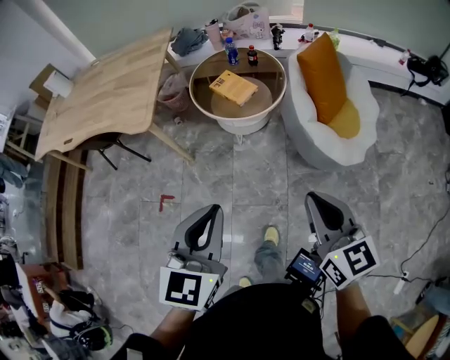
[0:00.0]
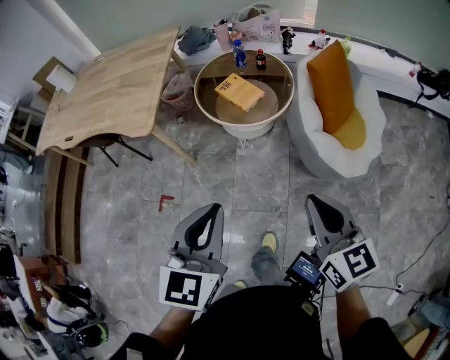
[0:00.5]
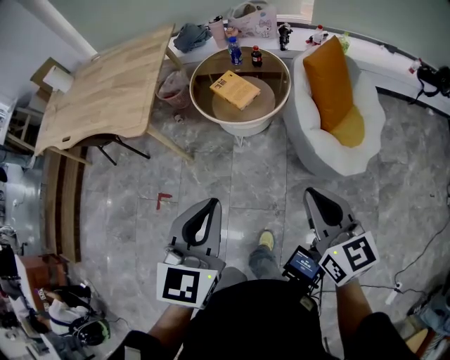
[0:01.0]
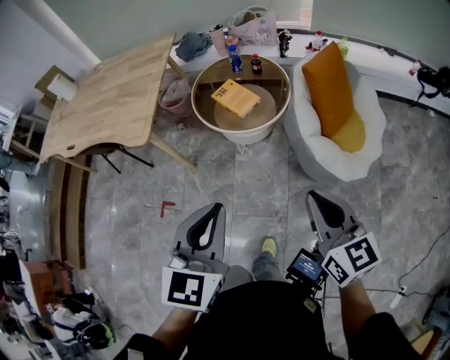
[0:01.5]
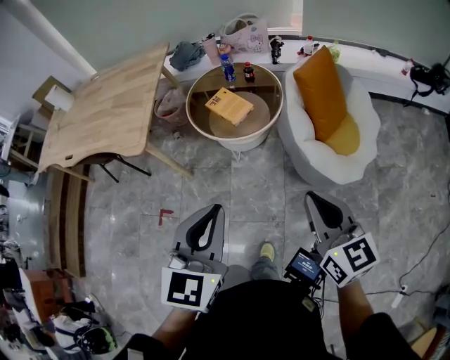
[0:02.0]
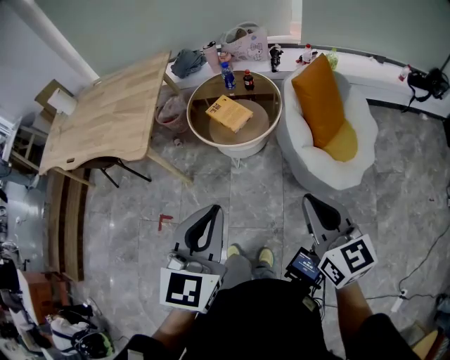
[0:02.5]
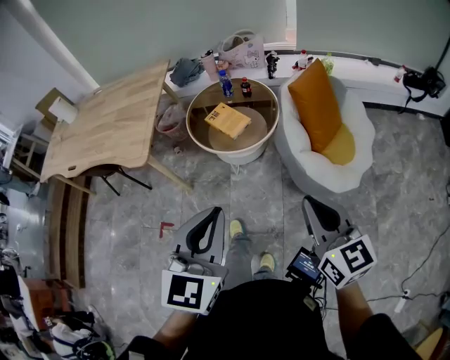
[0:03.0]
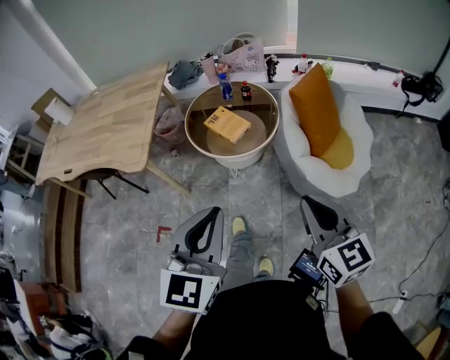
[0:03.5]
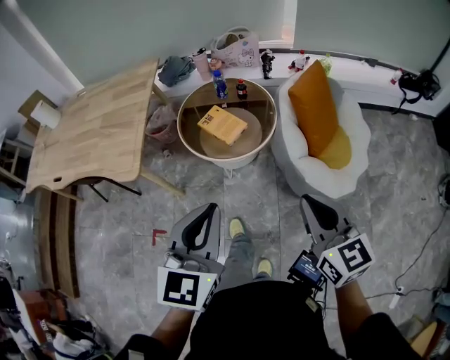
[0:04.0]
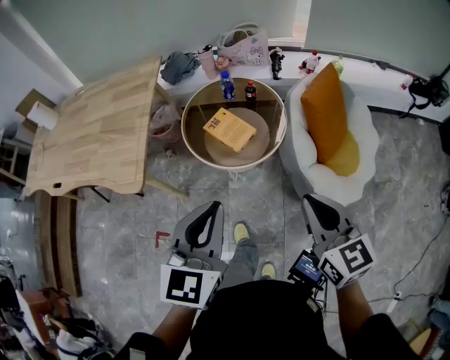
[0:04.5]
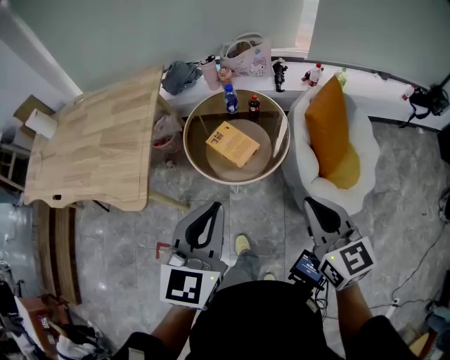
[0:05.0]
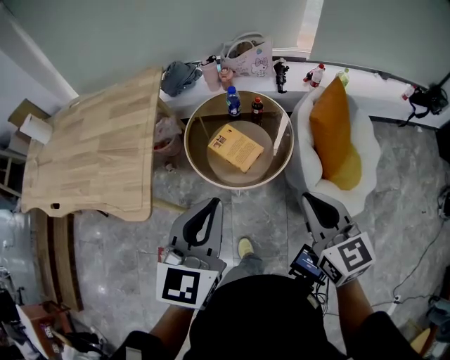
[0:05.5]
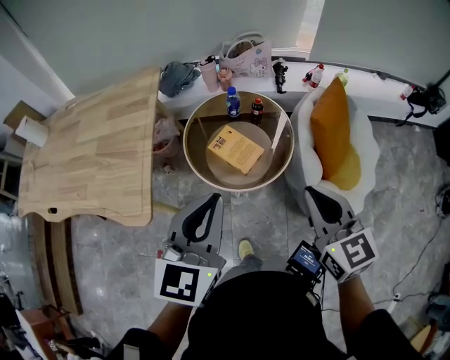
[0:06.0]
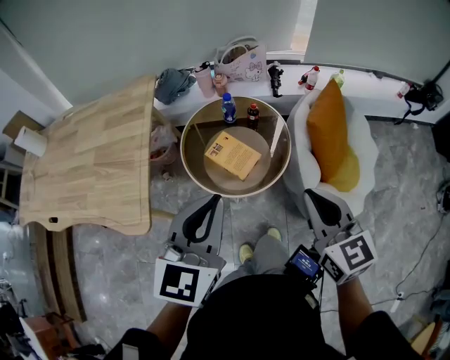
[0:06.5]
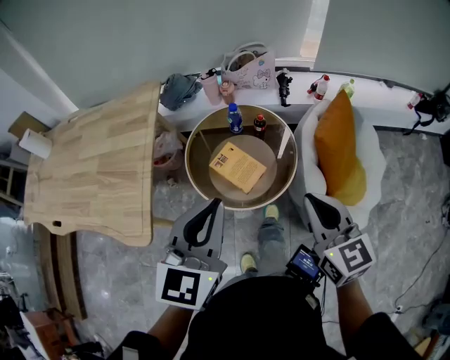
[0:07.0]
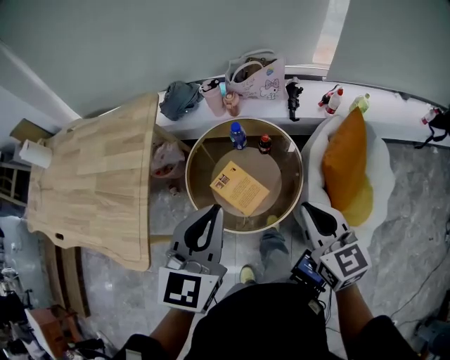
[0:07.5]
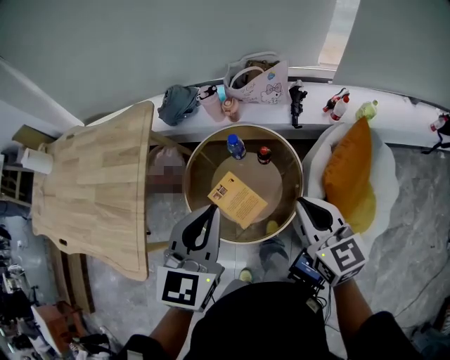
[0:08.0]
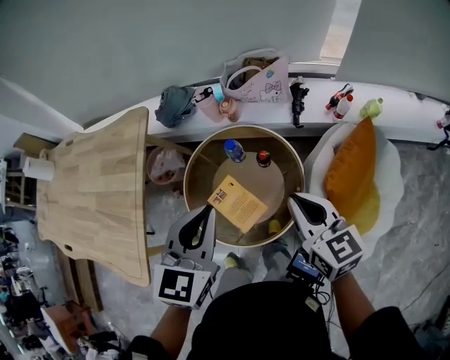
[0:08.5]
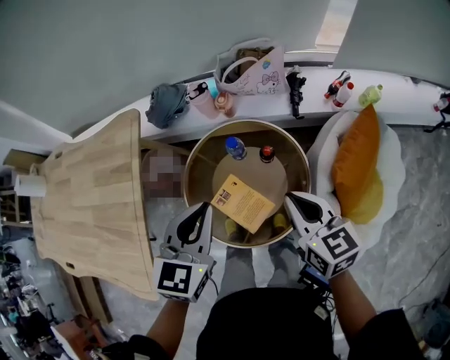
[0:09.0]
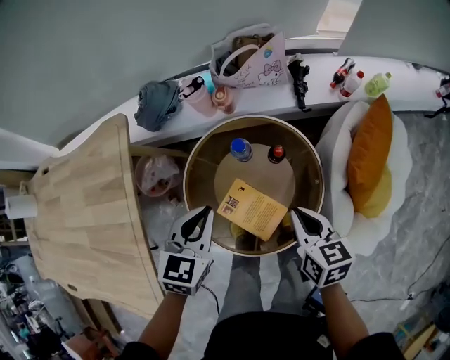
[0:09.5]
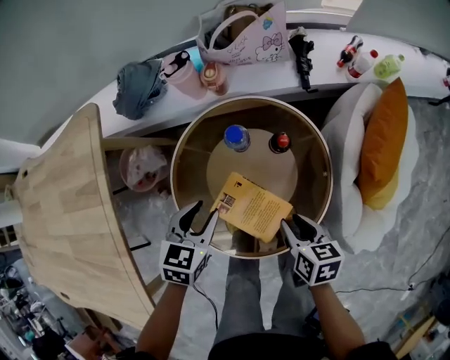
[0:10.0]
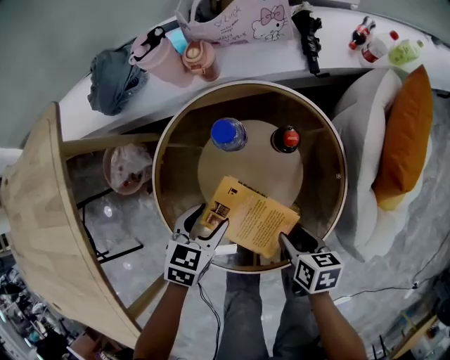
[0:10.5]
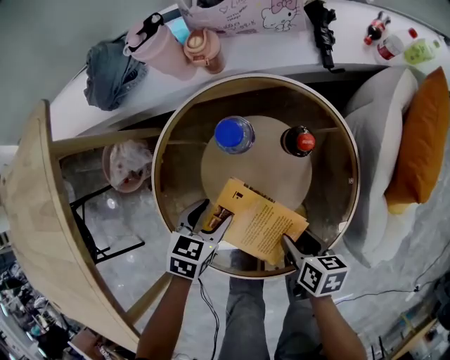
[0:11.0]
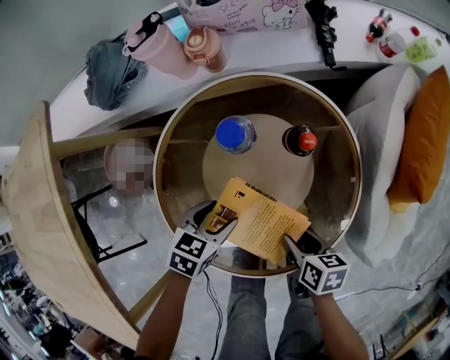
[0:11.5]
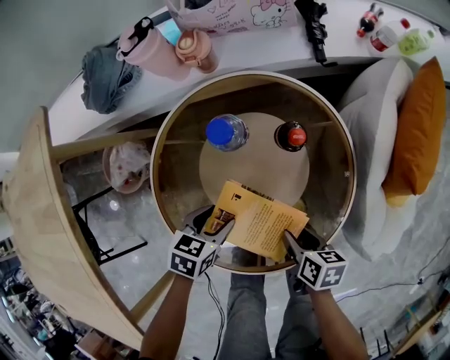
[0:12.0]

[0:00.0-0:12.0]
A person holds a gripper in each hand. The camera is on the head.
0:00.0 to 0:02.0: The two grippers go roughly 10 cm forward and to the right.
0:02.0 to 0:04.0: Both grippers move forward, some 10 cm.
0:04.0 to 0:06.0: Both grippers move forward, roughly 20 cm.
0:06.0 to 0:08.0: Both grippers move forward, approximately 30 cm.
0:08.0 to 0:10.0: Both grippers travel together downward, approximately 35 cm. The left gripper swivels roughly 30 degrees, and opens. The right gripper changes its angle by approximately 40 degrees, and opens its fingers.
0:10.0 to 0:12.0: Both grippers travel together downward, roughly 15 cm. The left gripper swivels about 20 degrees.

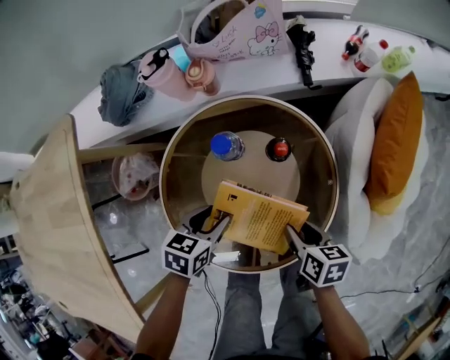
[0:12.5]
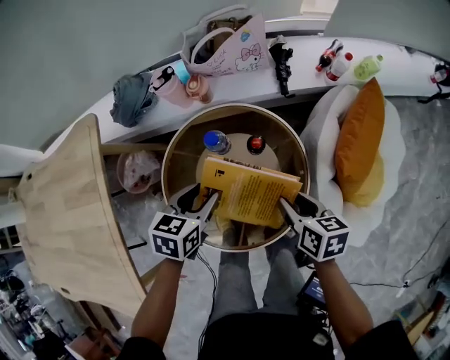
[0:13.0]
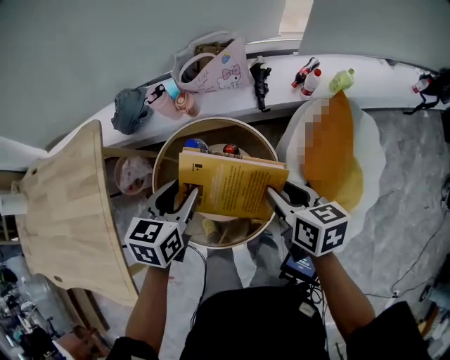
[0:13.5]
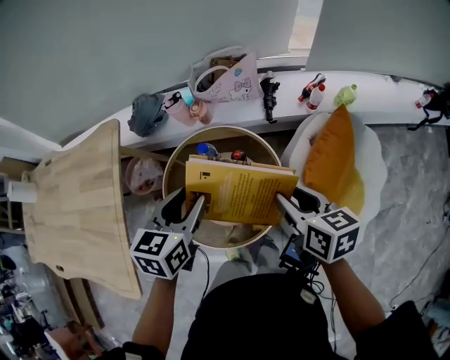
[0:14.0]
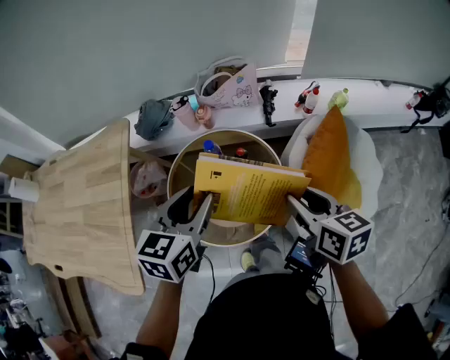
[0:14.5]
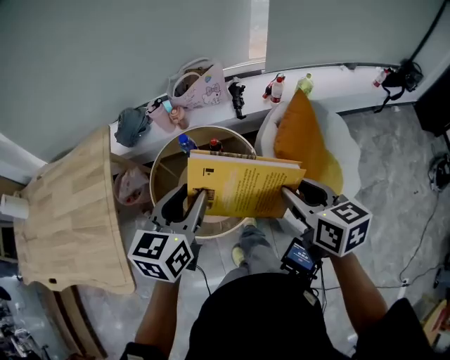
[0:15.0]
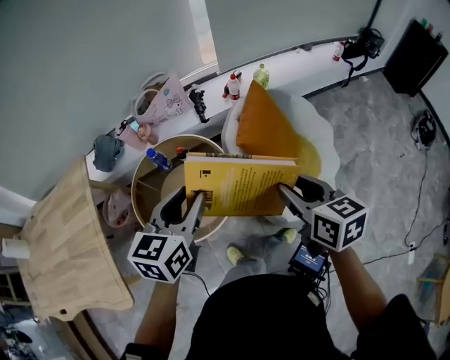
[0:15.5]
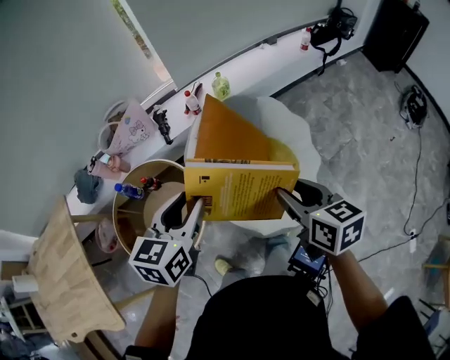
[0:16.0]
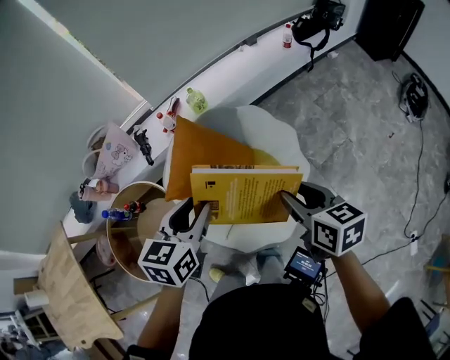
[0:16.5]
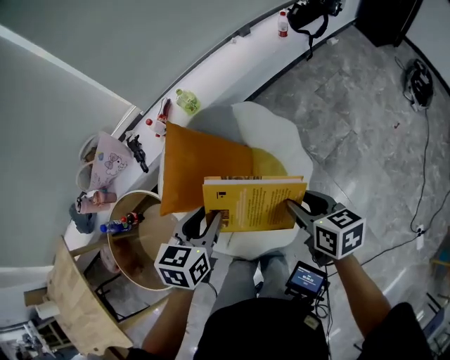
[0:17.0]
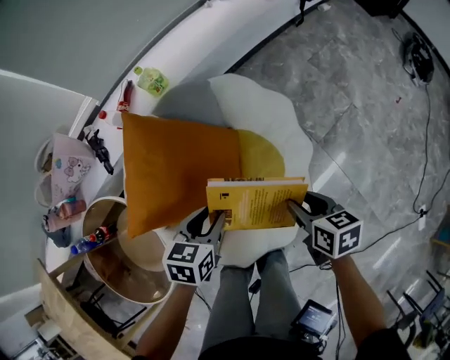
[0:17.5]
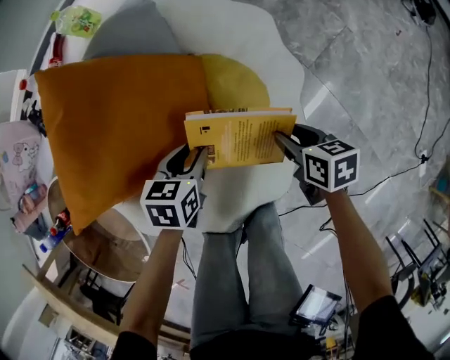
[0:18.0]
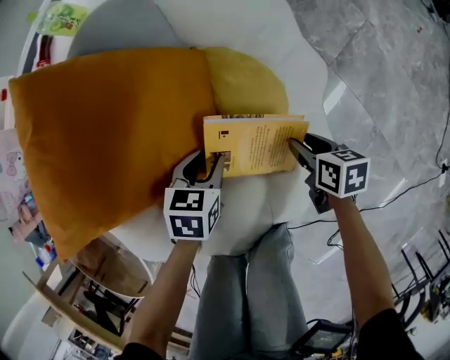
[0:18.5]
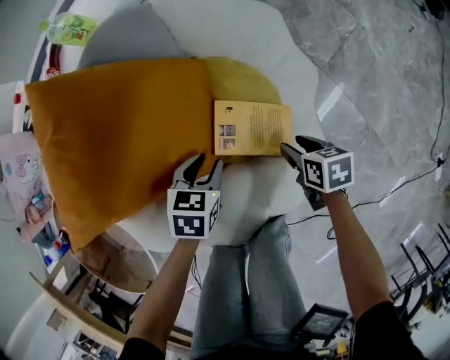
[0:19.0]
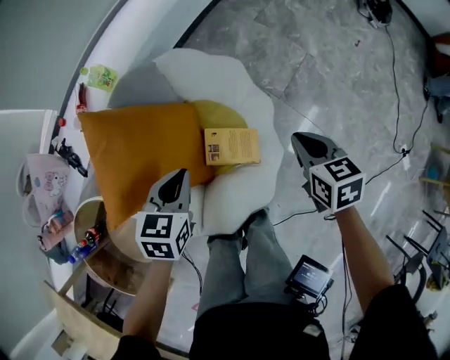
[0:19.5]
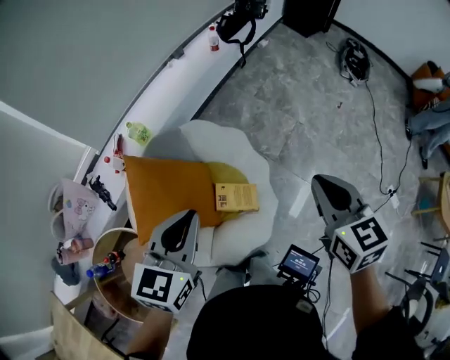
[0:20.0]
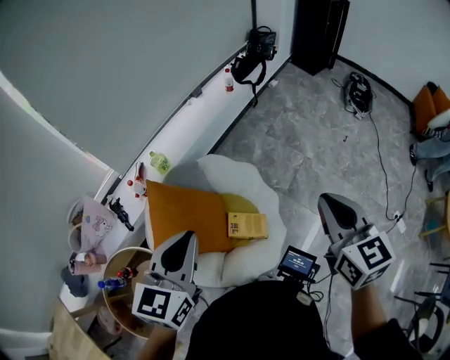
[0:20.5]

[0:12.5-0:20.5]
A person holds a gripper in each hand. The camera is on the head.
0:12.5 to 0:14.5: Both grippers travel together upward, some 40 cm. The left gripper turns by roughly 30 degrees, while the right gripper rotates approximately 30 degrees.
0:14.5 to 0:16.5: The two grippers travel together, some 50 cm. The left gripper rotates some 30 degrees; the right gripper rotates approximately 30 degrees.
0:16.5 to 0:18.5: The two grippers go about 60 cm downward. The left gripper rotates roughly 30 degrees. The right gripper rotates some 30 degrees.
0:18.5 to 0:20.5: The two grippers go approximately 70 cm upward. The right gripper tips its fingers upward by some 30 degrees, and closes its fingers; the left gripper tips its fingers upward by about 40 degrees, and closes.

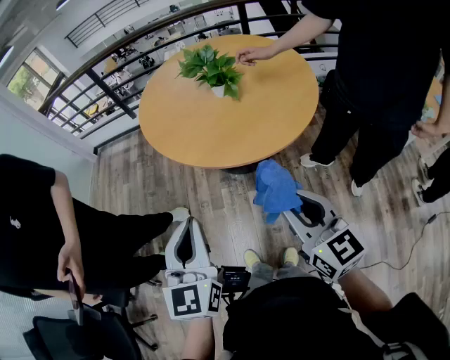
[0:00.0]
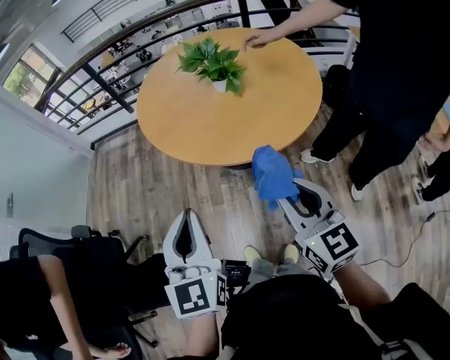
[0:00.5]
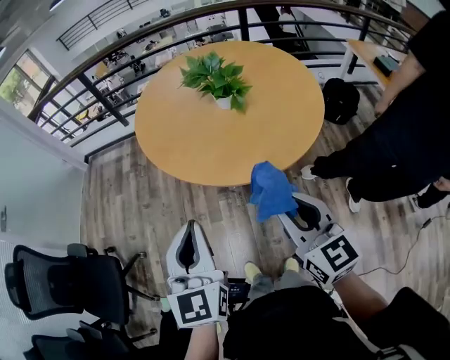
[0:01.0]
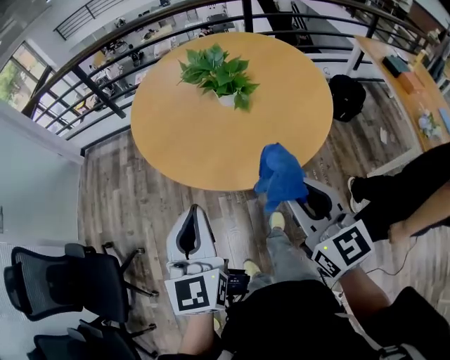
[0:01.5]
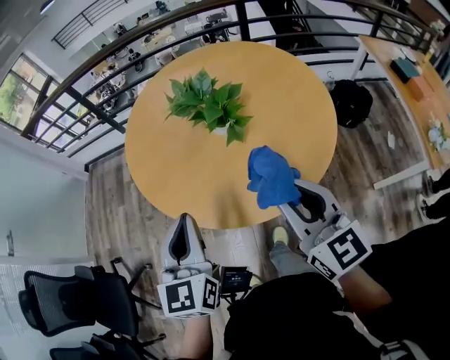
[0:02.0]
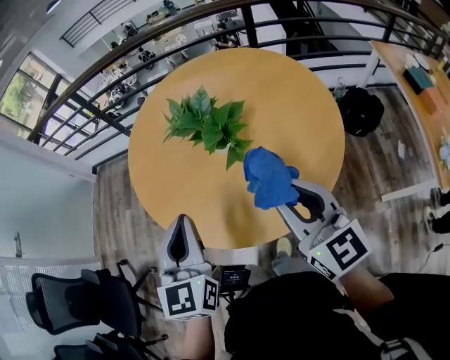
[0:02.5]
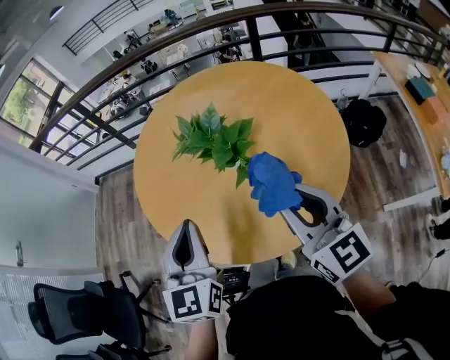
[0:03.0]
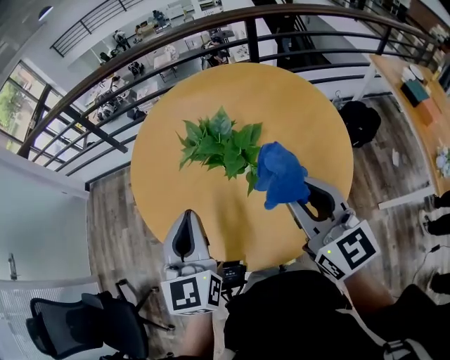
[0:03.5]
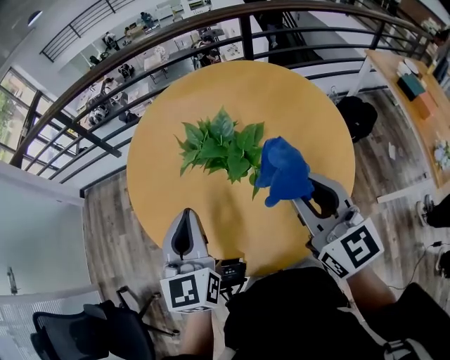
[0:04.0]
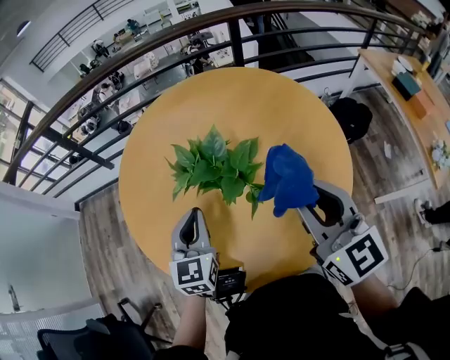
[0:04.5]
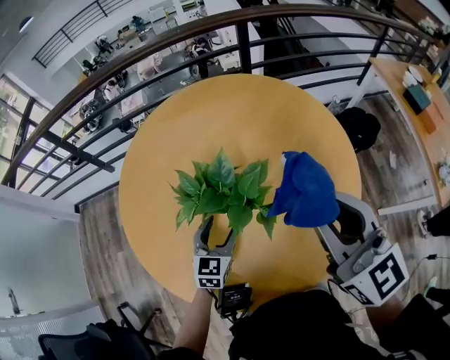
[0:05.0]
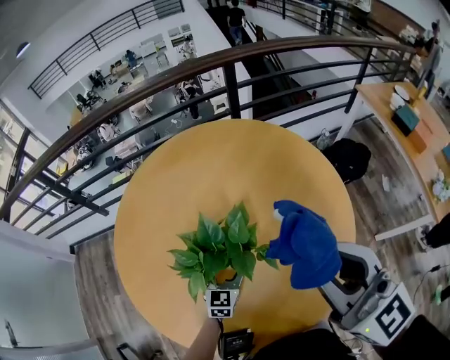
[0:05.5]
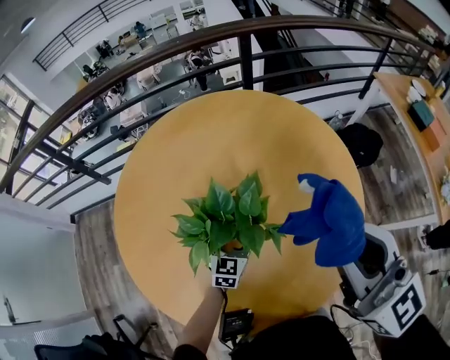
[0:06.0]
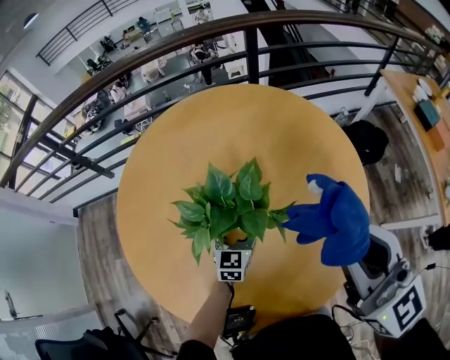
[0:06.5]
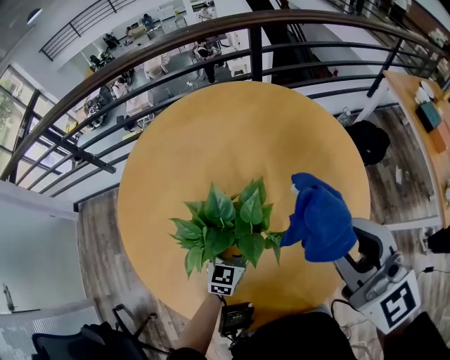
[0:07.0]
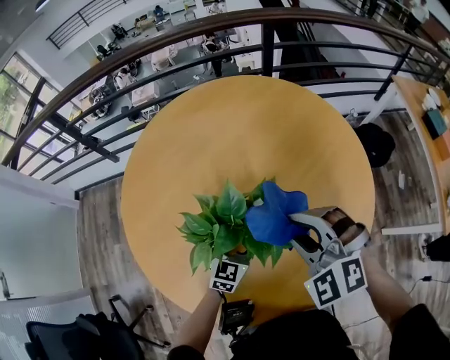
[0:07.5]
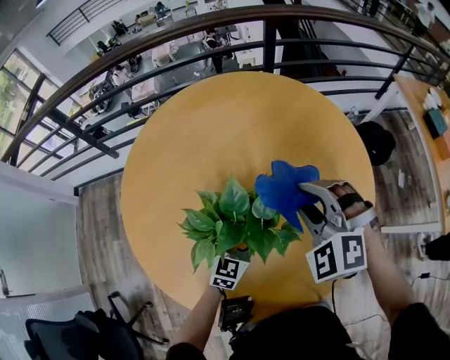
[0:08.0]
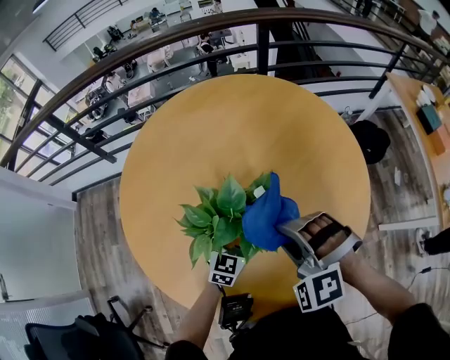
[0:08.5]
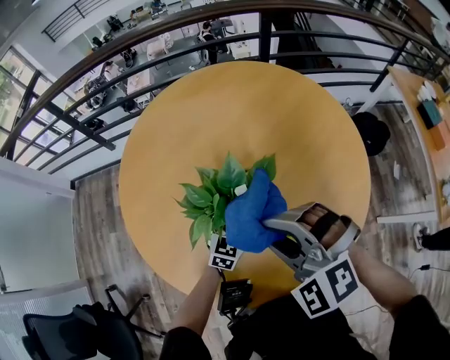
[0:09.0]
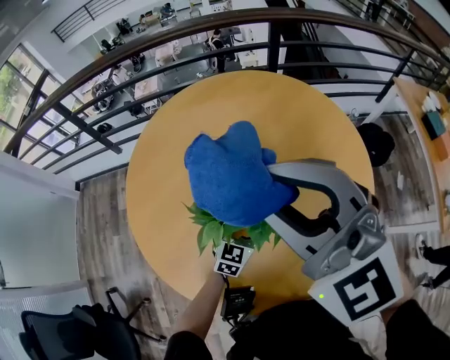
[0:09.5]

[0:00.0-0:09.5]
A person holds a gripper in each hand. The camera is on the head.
0:00.0 to 0:02.0: The grippers both shift forward by roughly 25 cm.
0:02.0 to 0:04.0: The two grippers go roughly 20 cm forward.
0:04.0 to 0:05.5: The right gripper travels forward and upward by roughly 10 cm; the left gripper travels downward, forward and to the right by approximately 30 cm, changes its angle by approximately 30 degrees, and opens its fingers.
0:05.5 to 0:07.5: The right gripper shifts about 20 cm downward, and points its fingers approximately 40 degrees further downward.
0:07.5 to 0:09.5: The right gripper is displaced upward and to the left by about 20 cm, and turns by roughly 30 degrees.
